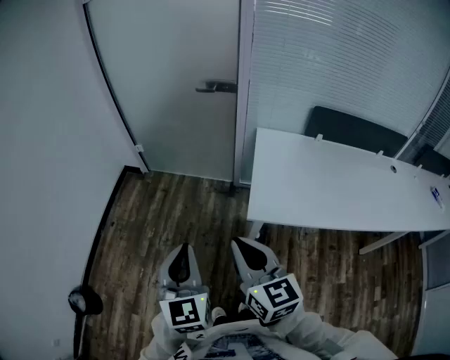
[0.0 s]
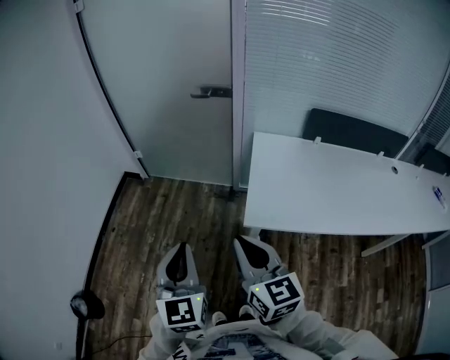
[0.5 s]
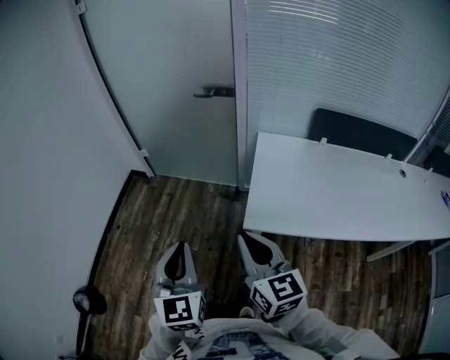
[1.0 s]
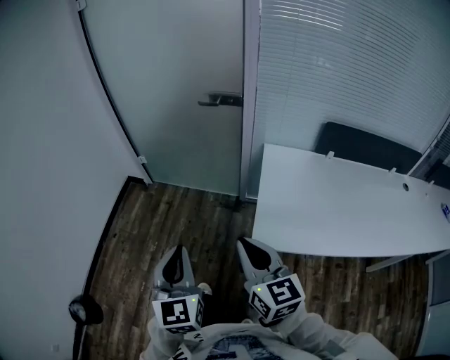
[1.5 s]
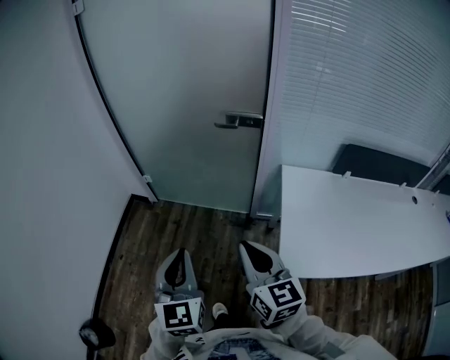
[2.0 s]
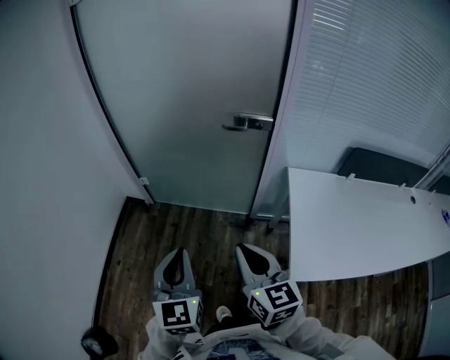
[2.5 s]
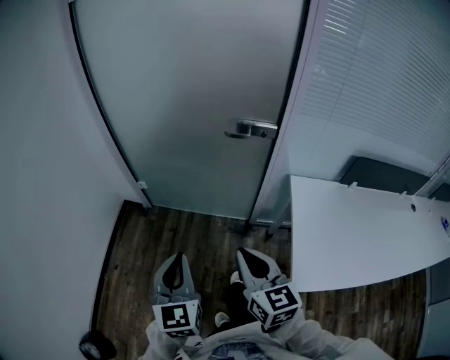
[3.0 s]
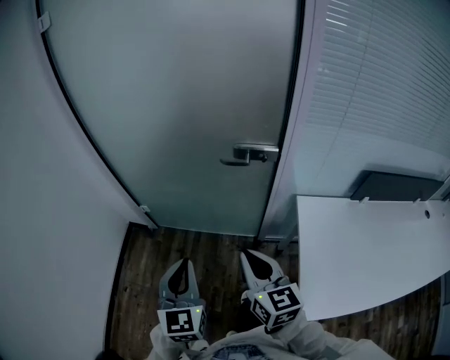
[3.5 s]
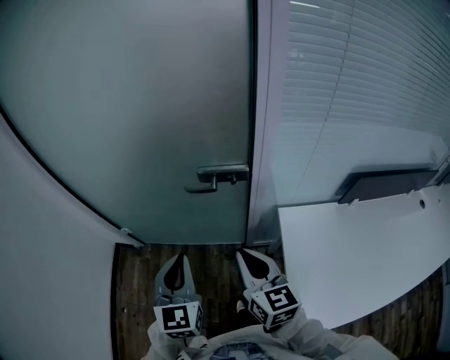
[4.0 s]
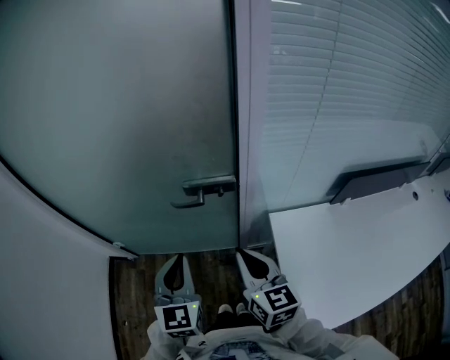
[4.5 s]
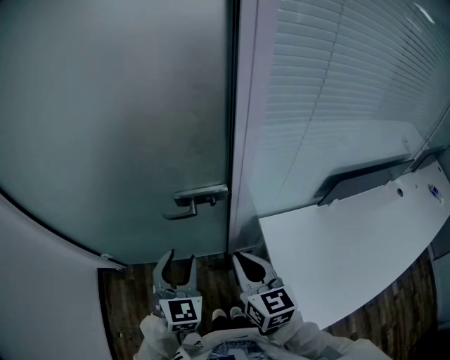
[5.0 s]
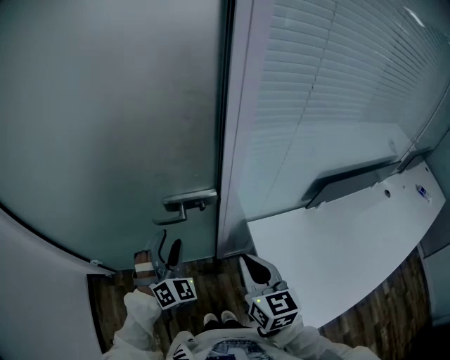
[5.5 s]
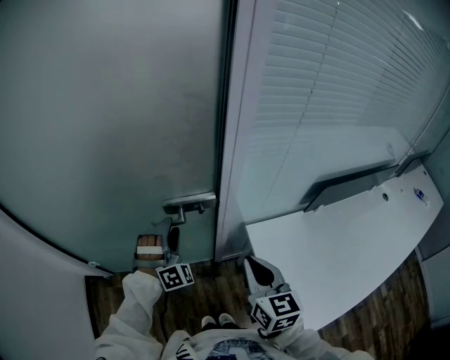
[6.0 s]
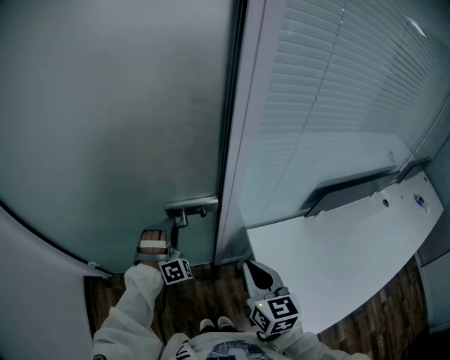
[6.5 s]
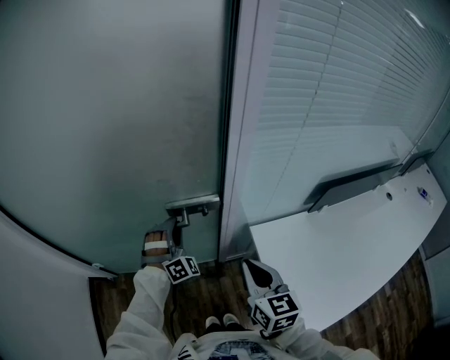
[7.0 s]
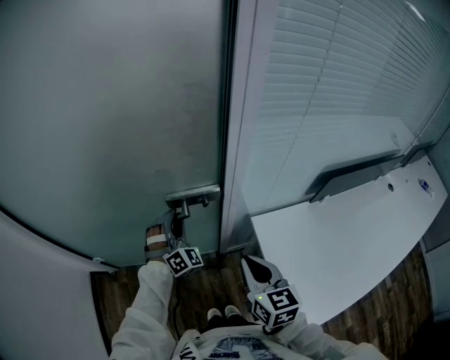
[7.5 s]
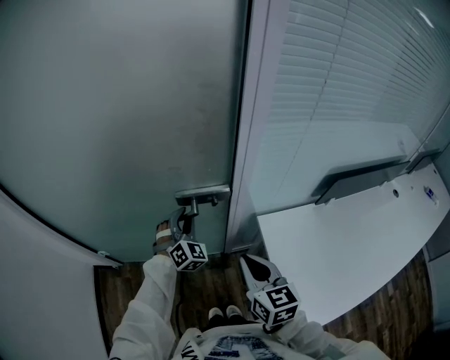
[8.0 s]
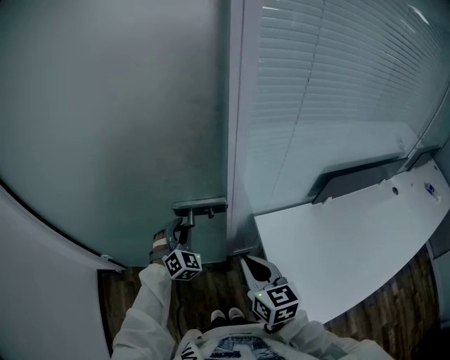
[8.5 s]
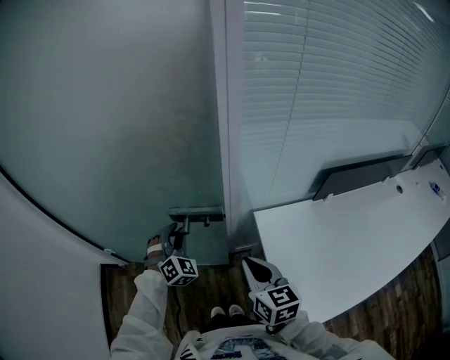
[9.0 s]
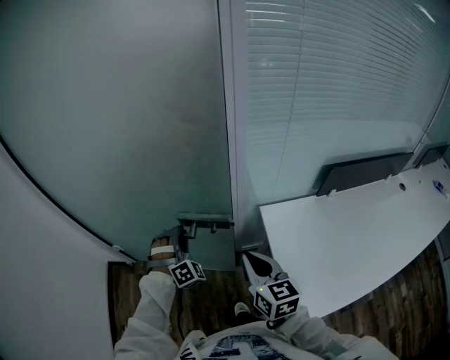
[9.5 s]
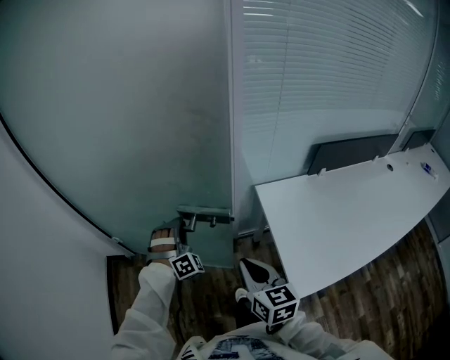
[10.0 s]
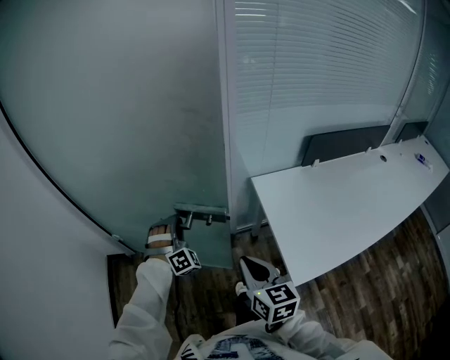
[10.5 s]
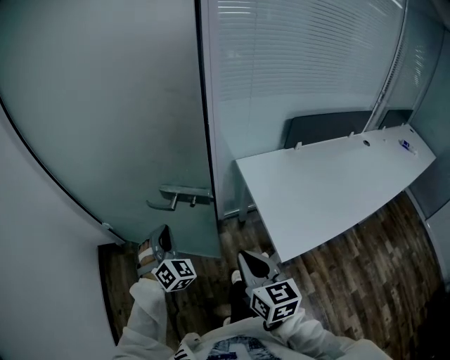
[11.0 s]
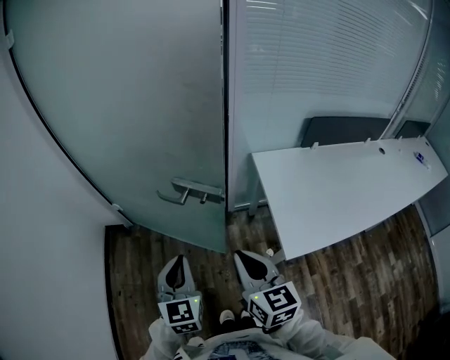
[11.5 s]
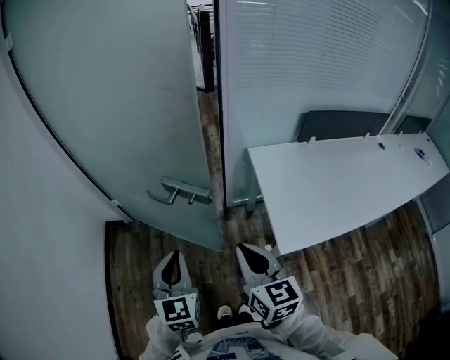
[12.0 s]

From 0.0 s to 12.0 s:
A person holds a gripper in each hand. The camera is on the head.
From 0.0 s to 2.0 s: Both grippers move forward, roughly 25 cm.
From 2.0 s to 4.0 s: The grippers both shift forward by roughly 30 cm.
From 4.0 s to 6.0 s: The left gripper moves forward and downward, about 25 cm, rolls clockwise, seen from behind, by approximately 70 degrees, and opens up; the right gripper travels to the right by approximately 10 cm.
From 6.0 s to 8.0 s: The left gripper changes place by approximately 5 cm, changes its angle by roughly 30 degrees, and closes up, while the right gripper changes place by some 5 cm.
From 8.0 s to 10.0 s: The two grippers go about 20 cm backward. The left gripper changes its angle by approximately 30 degrees.
From 10.0 s to 12.0 s: The left gripper shifts approximately 30 cm backward, and rolls counterclockwise, seen from behind, by some 70 degrees. The right gripper goes some 15 cm backward and upward.

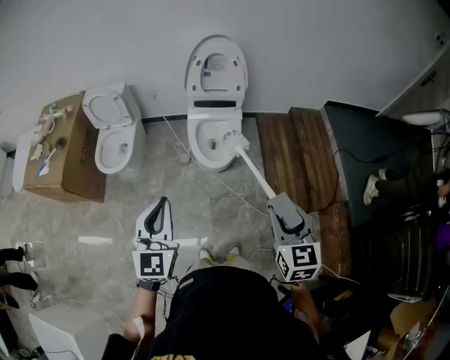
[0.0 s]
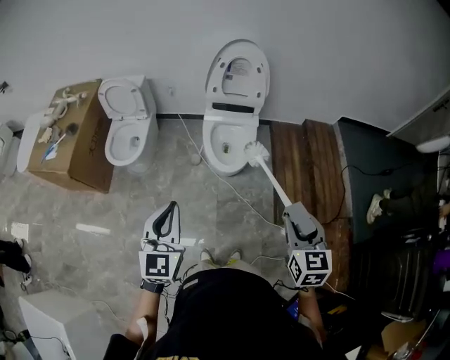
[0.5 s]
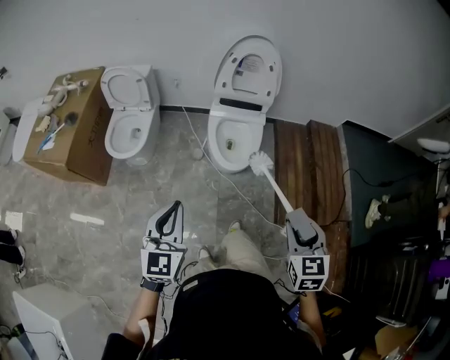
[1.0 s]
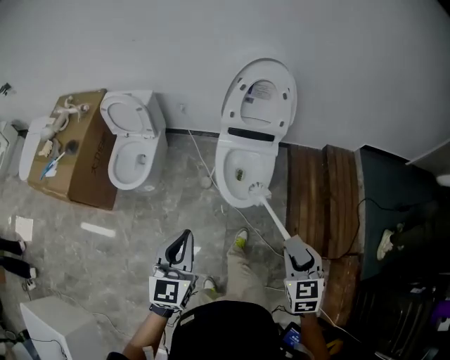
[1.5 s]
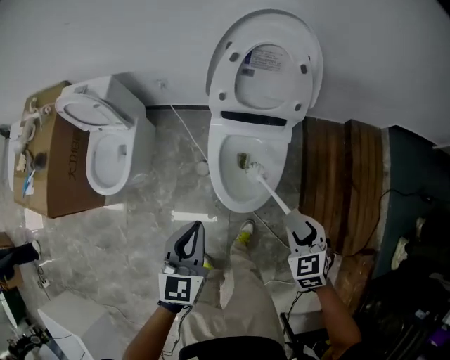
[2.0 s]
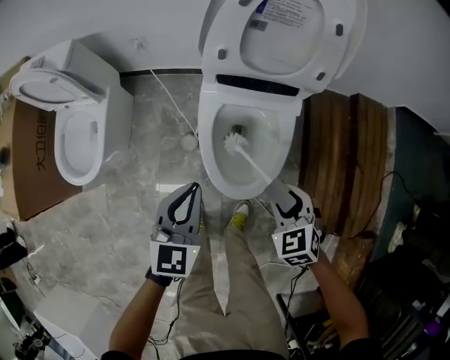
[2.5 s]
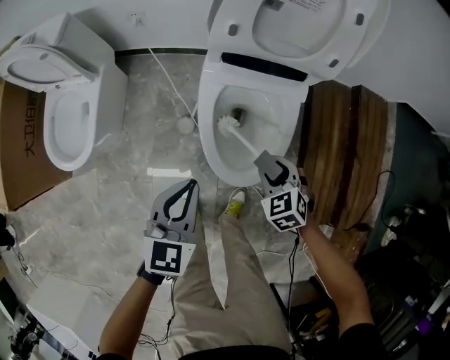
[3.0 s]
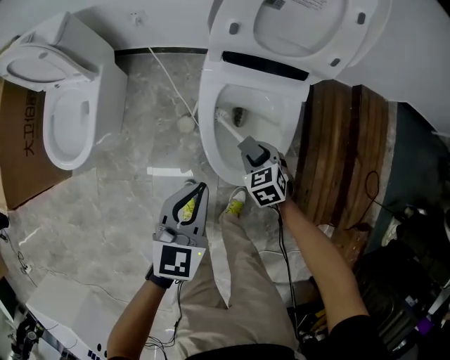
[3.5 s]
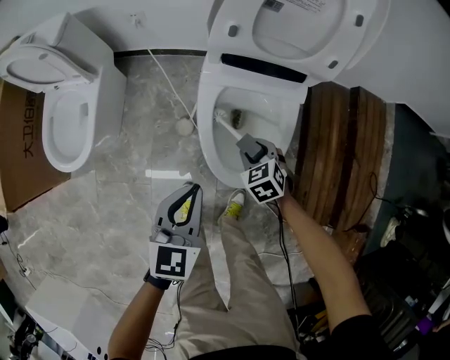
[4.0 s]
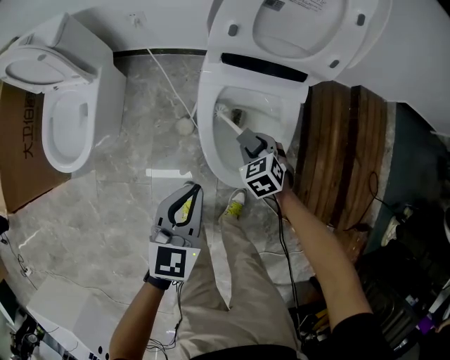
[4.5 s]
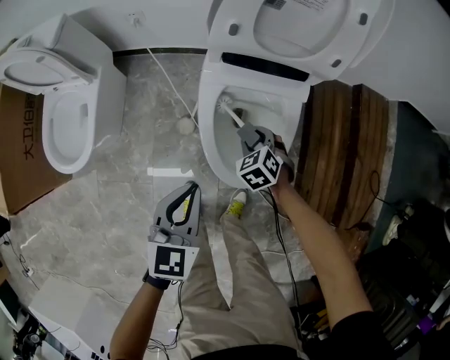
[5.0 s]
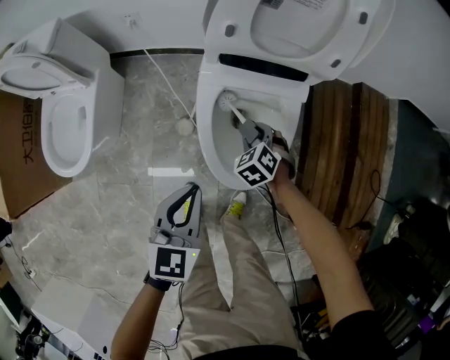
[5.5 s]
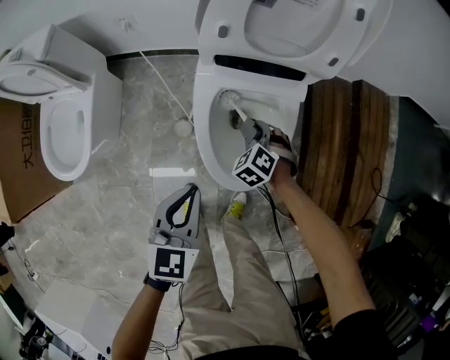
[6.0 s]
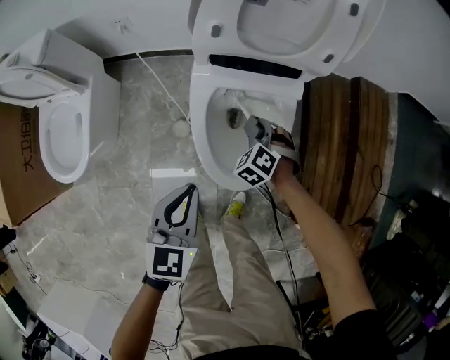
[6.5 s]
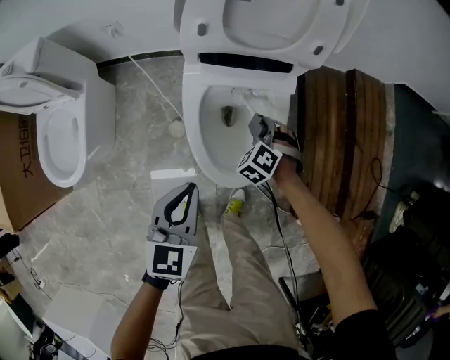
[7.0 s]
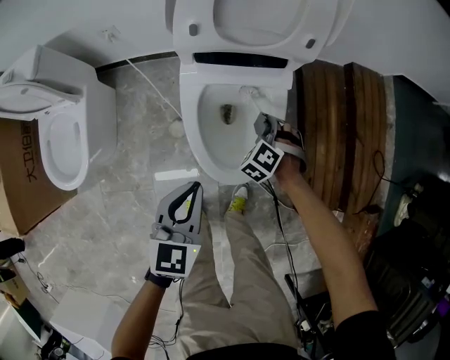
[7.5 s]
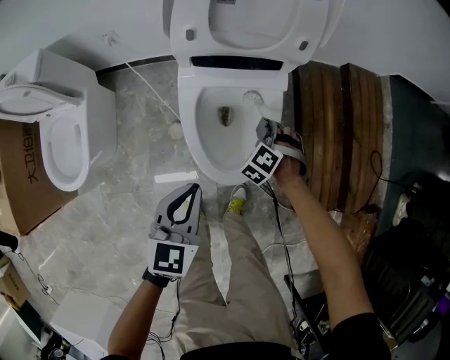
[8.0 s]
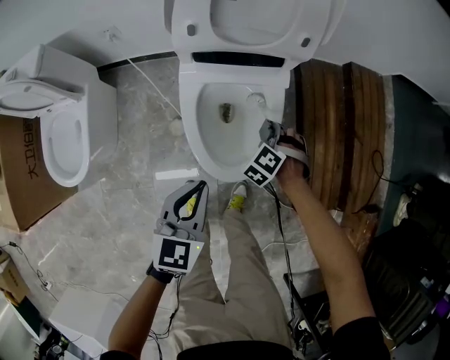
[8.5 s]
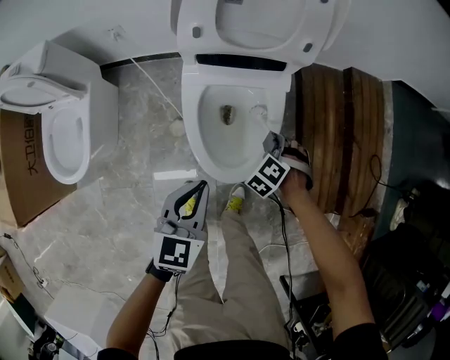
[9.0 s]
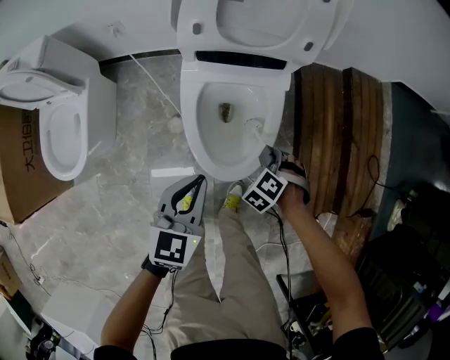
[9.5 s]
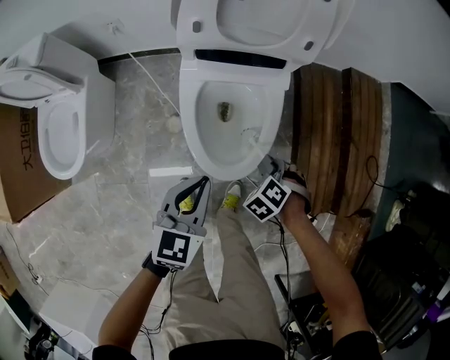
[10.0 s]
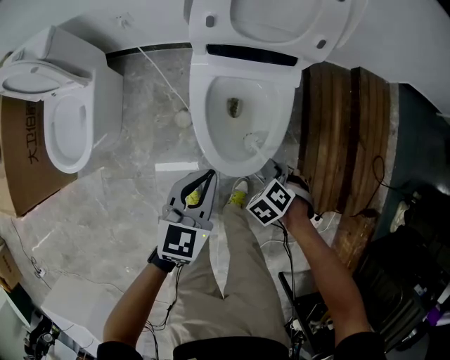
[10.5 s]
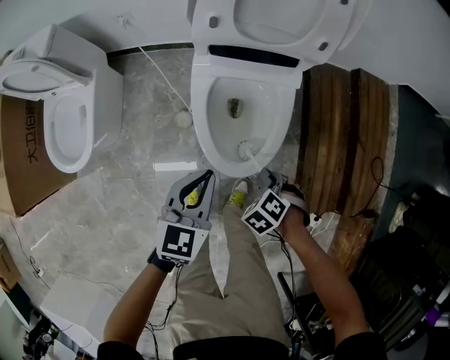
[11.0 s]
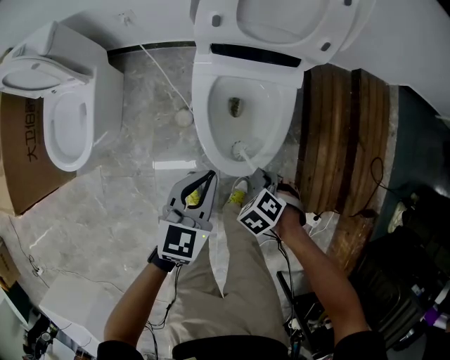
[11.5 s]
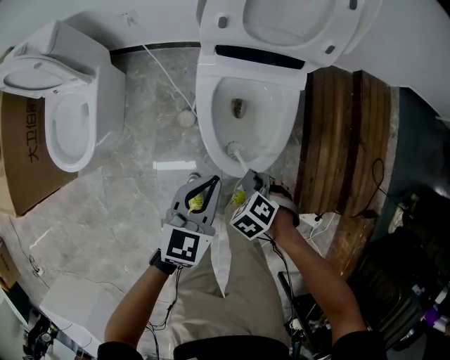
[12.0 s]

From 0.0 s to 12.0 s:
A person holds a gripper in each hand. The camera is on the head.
From 0.0 s to 2.0 s: The left gripper moves roughly 40 cm, and rotates about 20 degrees.
From 2.0 s to 4.0 s: The left gripper goes roughly 15 cm downward.

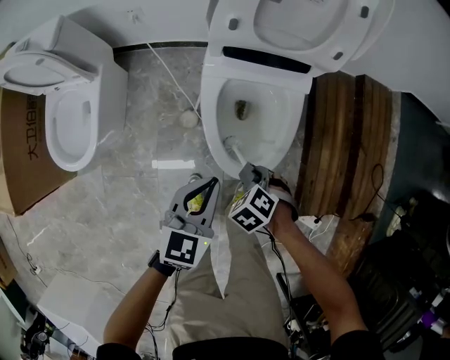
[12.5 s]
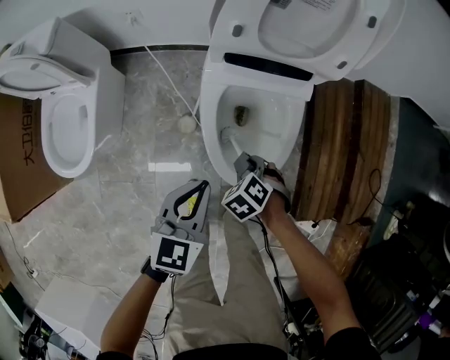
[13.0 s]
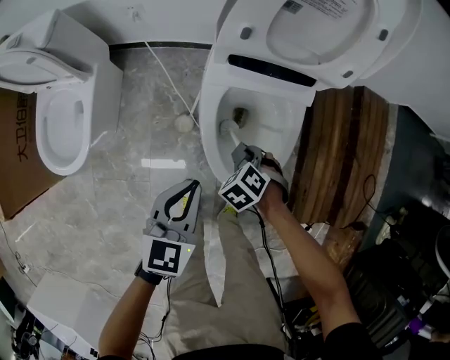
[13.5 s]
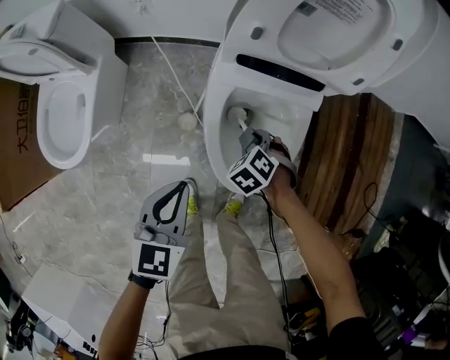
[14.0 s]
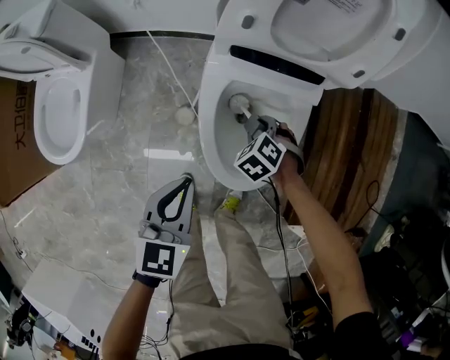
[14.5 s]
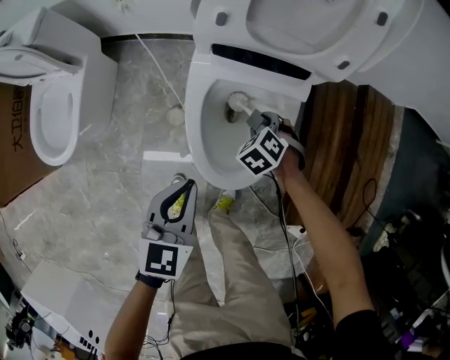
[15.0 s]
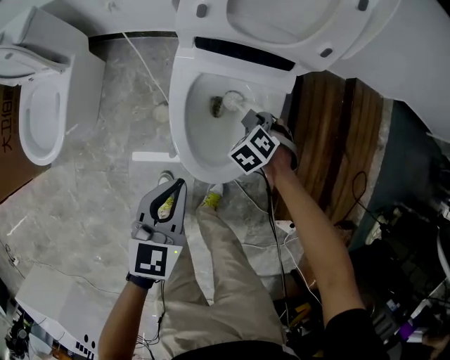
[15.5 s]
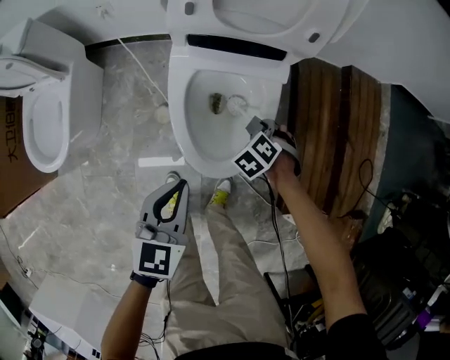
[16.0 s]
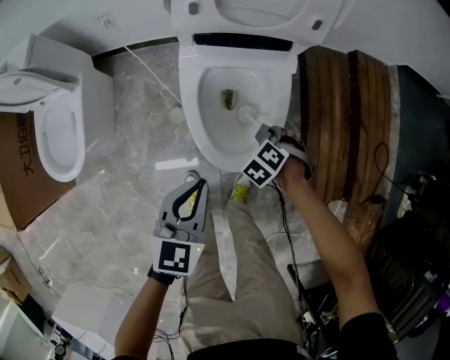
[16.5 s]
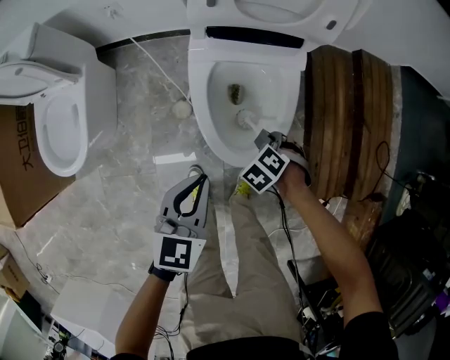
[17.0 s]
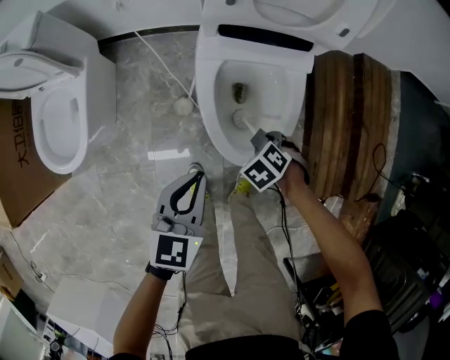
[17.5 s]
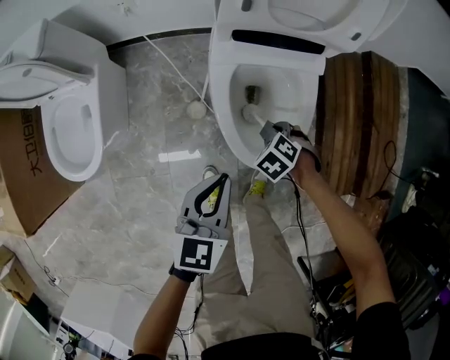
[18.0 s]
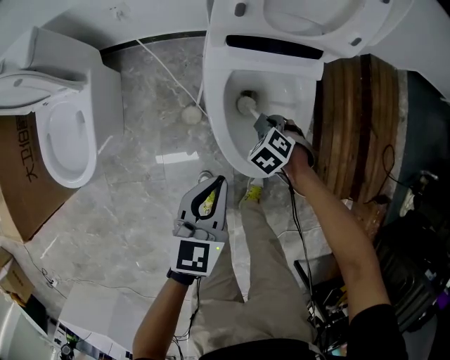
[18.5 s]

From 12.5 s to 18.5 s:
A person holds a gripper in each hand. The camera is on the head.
From 12.5 s to 14.5 s: The left gripper ends up about 5 cm from where it was.
From 14.5 s to 16.5 s: The left gripper shifts by approximately 10 cm.
From 16.5 s to 18.5 s: The left gripper shifts by some 5 cm.
